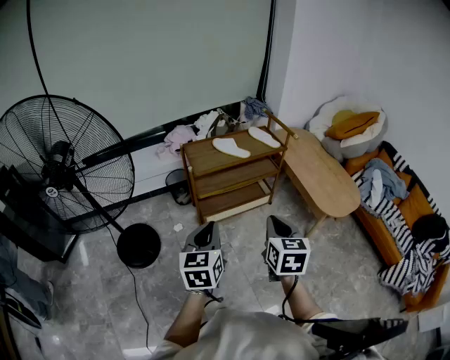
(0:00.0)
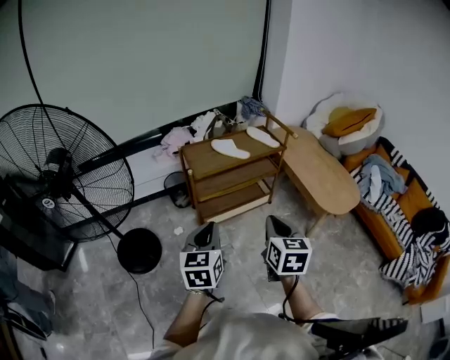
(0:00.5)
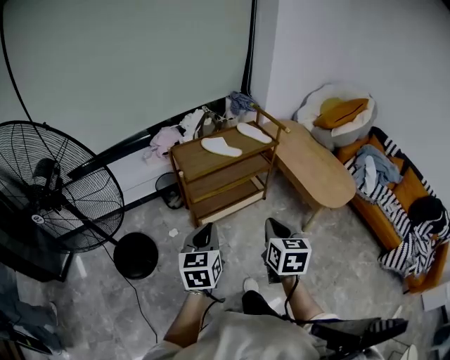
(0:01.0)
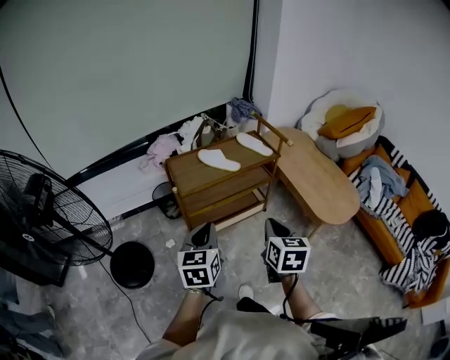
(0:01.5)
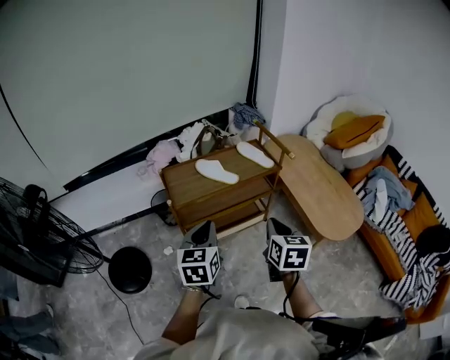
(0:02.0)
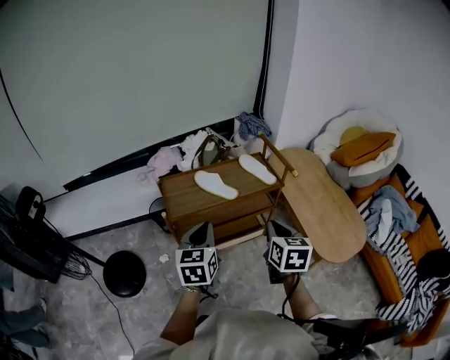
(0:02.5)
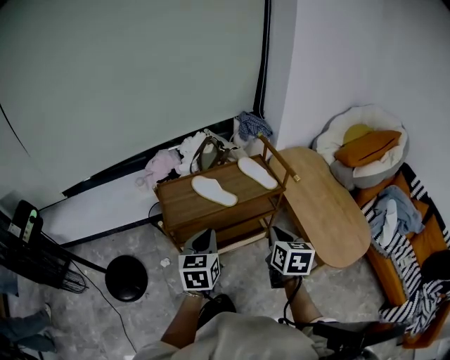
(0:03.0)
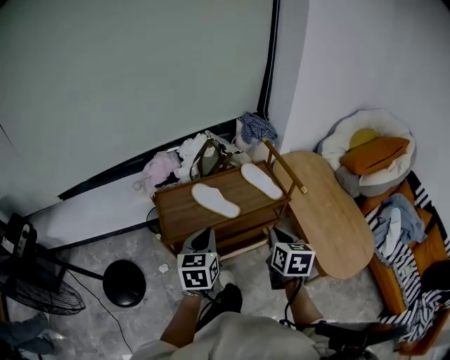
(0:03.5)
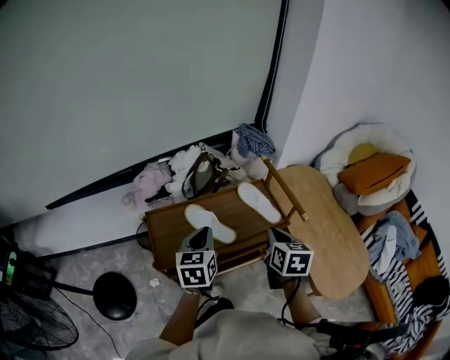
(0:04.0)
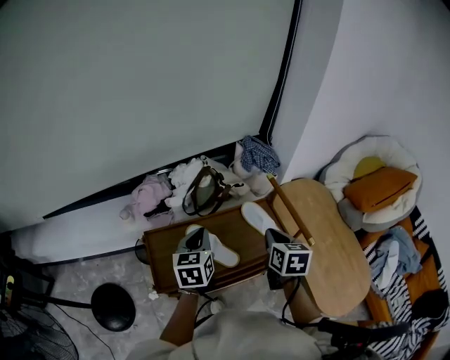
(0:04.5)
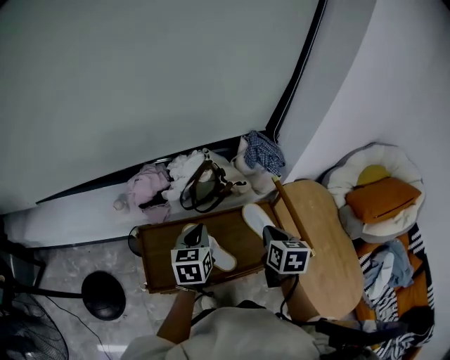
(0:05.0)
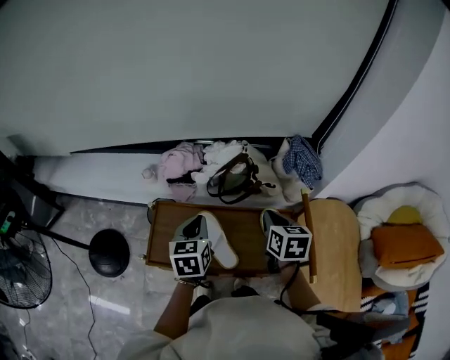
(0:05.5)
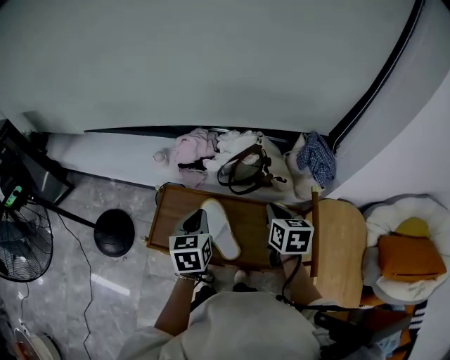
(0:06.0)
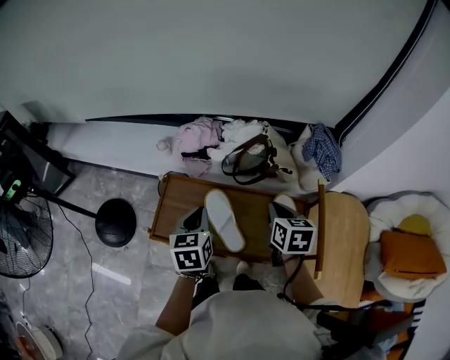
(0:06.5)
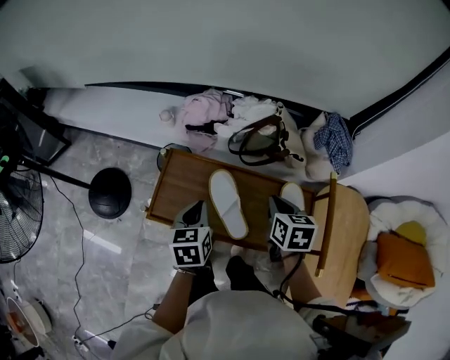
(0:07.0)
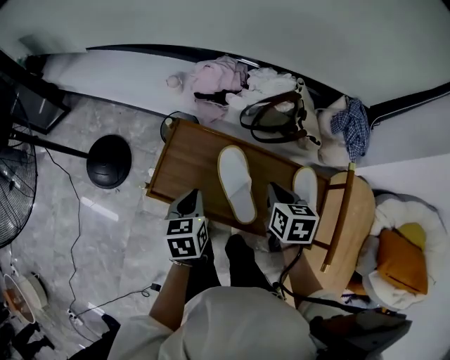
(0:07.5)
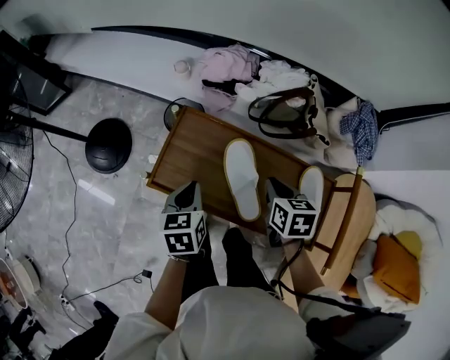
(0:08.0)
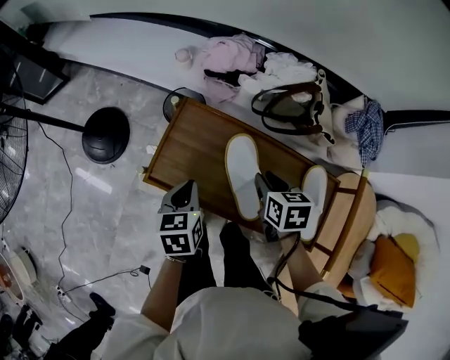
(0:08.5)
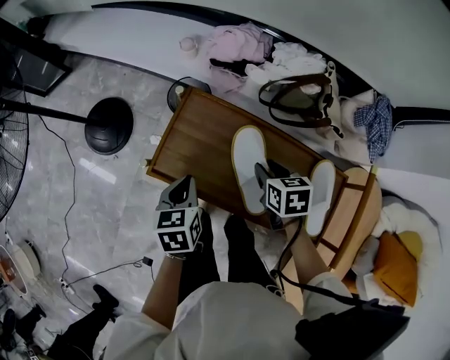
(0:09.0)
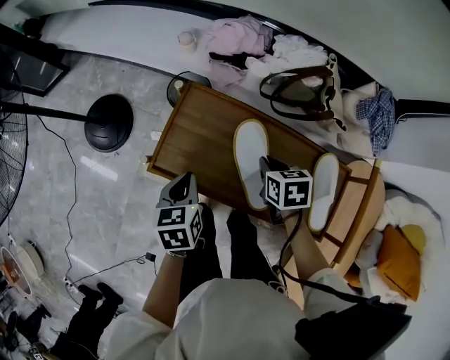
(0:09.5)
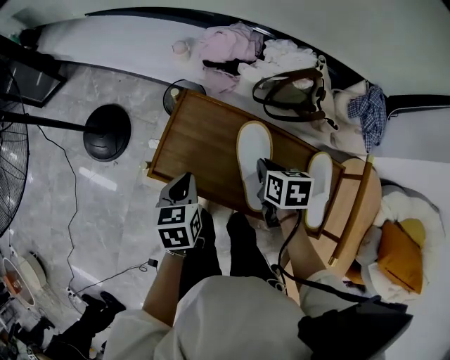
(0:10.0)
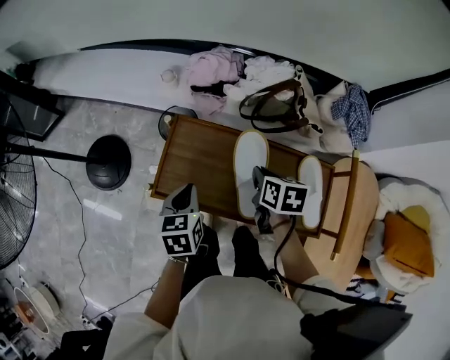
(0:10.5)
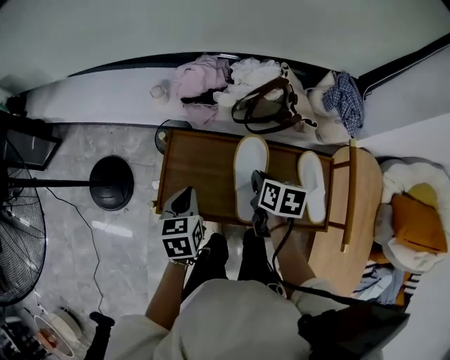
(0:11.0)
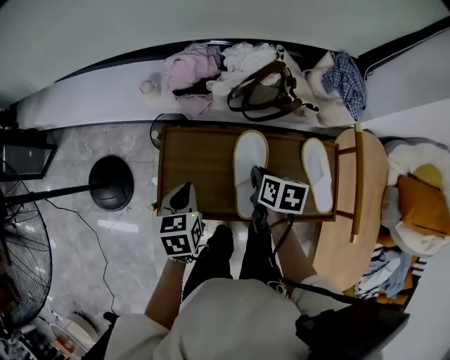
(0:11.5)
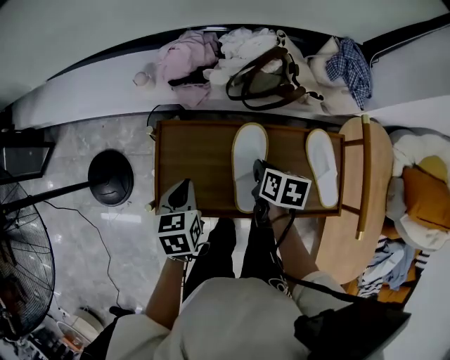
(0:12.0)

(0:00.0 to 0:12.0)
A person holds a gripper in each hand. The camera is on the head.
0:00.0 - 0:02.0: Both grippers move forward, some 20 cm.
0:02.0 - 0:04.0: Both grippers travel together forward, roughly 30 cm.
0:04.0 - 0:06.0: The right gripper shifts by approximately 25 cm, and swivels about 30 degrees. The left gripper shifts by roughly 10 cm, and changes its angle by approximately 30 degrees.
0:06.0 - 0:08.0: The left gripper moves downward, to the left and backward, some 15 cm. Meanwhile the right gripper is displaced downward and to the left by roughly 15 cm, and rotates about 20 degrees.
0:08.0 - 0:10.0: The right gripper changes place by approximately 5 cm, and opens, then closes once more.
0:10.0 - 0:12.0: The right gripper changes its angle by approximately 30 degrees. Meanwhile the left gripper shifts some 5 cm forward.

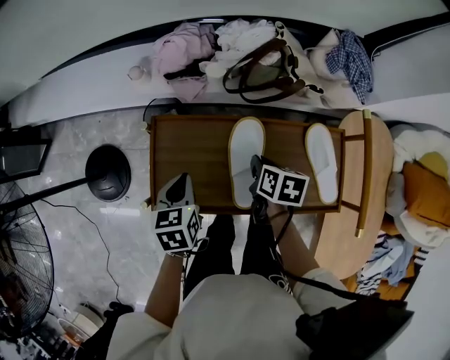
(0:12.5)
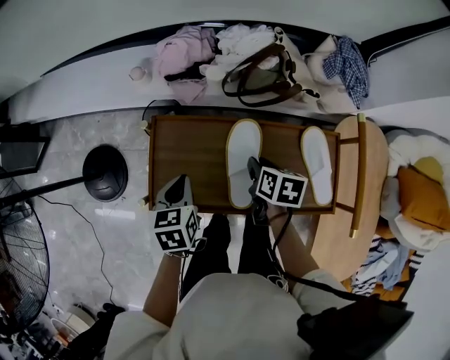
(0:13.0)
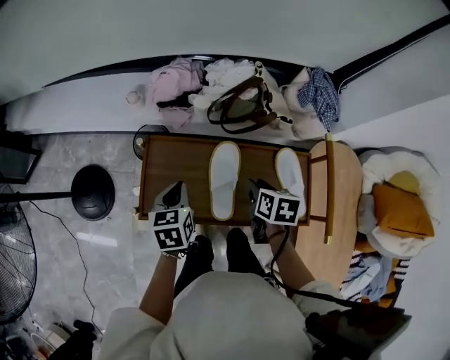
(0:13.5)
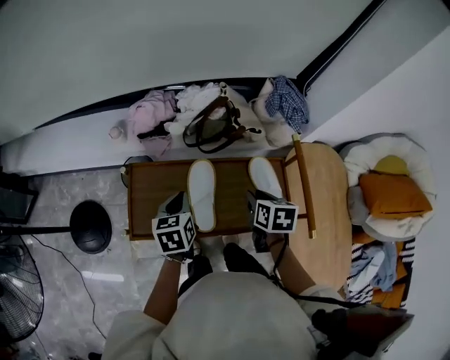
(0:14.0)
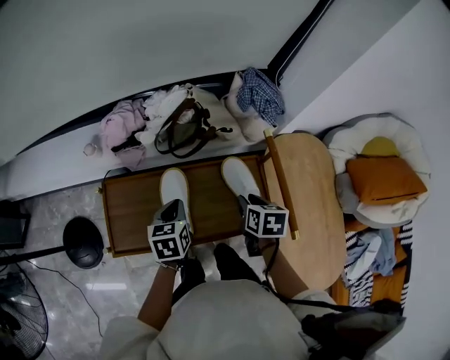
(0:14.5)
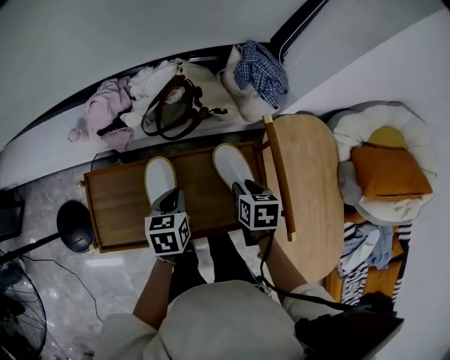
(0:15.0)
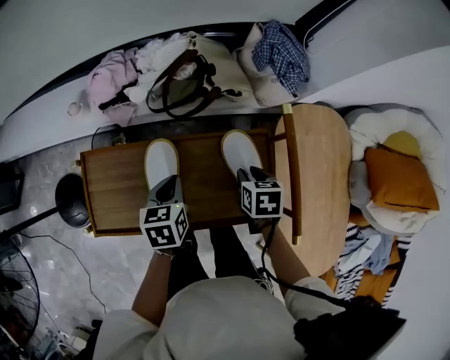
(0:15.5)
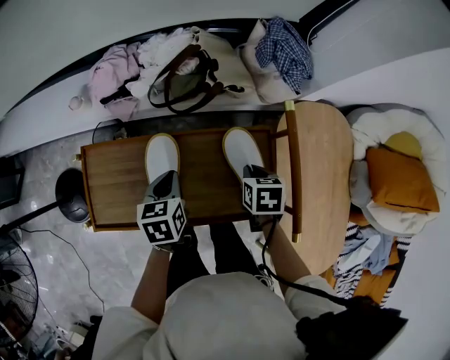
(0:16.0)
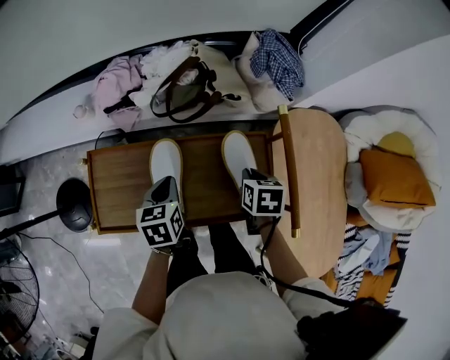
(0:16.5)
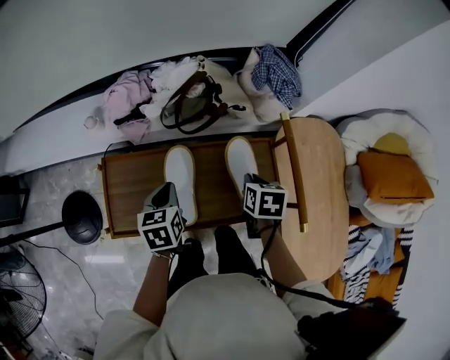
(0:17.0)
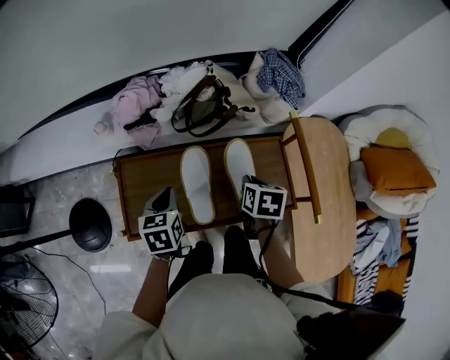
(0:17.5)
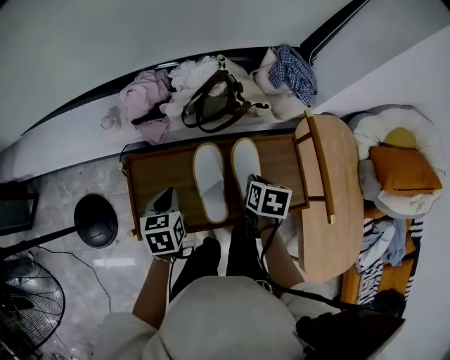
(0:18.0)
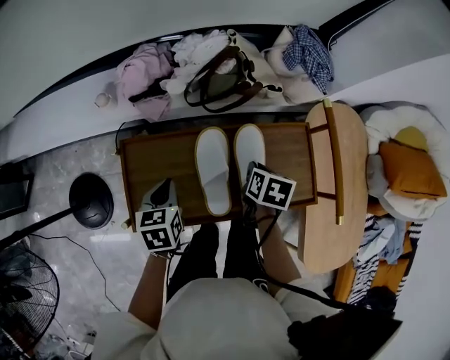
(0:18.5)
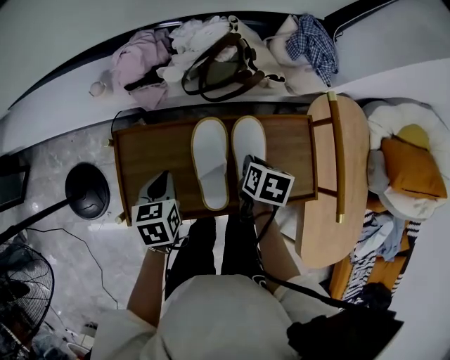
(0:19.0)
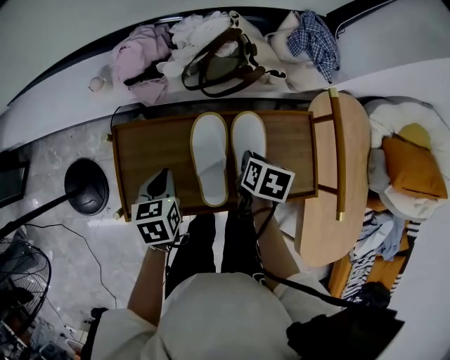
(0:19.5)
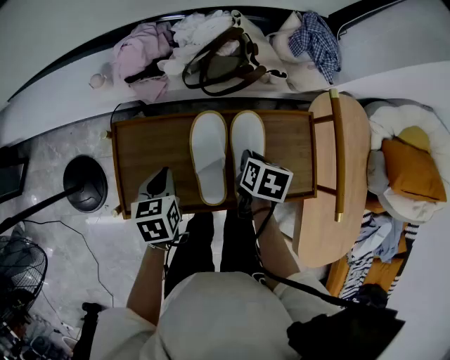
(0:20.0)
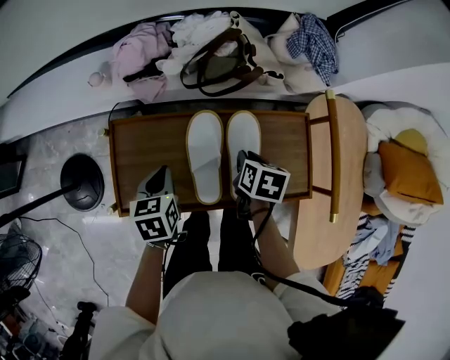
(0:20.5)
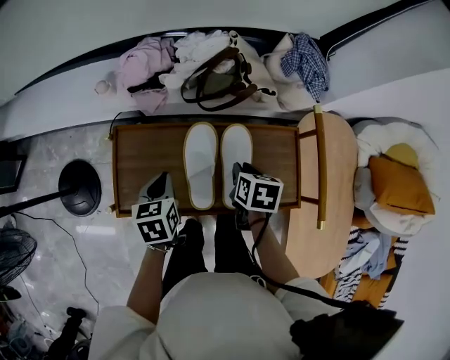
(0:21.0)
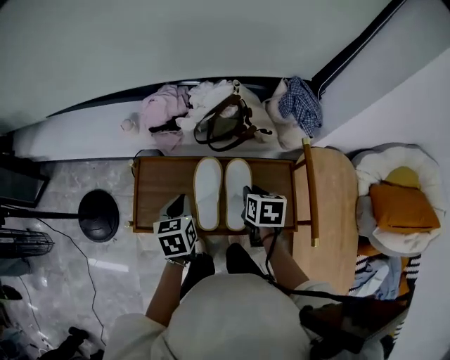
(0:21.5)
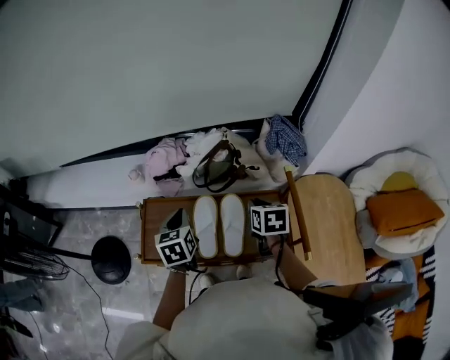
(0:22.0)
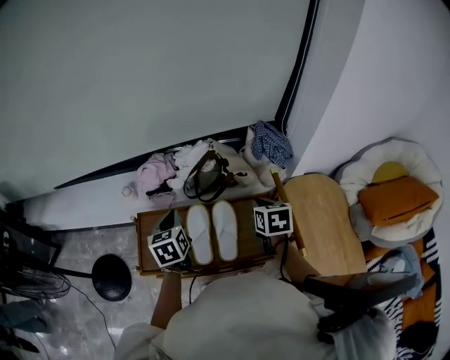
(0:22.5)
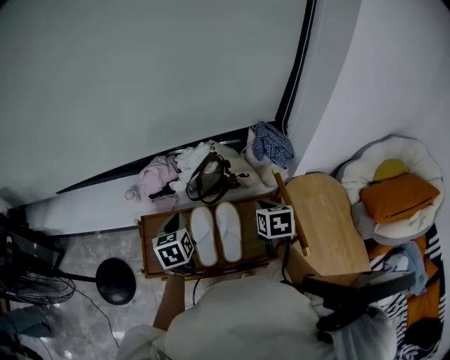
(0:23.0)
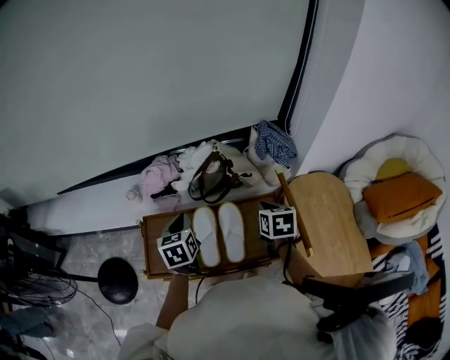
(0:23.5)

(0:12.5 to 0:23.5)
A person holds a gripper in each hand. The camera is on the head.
0:12.5 - 0:14.5: The right gripper goes approximately 20 cm to the right and upward, and opens its fingers. Meanwhile the left gripper is displaced to the right by roughly 15 cm.
0:14.5 - 0:16.0: The right gripper shifts roughly 10 cm downward, and closes its fingers; the left gripper shifts about 5 cm downward.
0:16.0 - 0:18.0: The right gripper is displaced to the left and upward by approximately 10 cm; the left gripper goes about 15 cm to the left.
0:18.0 - 0:20.0: The right gripper heads downward, covering about 5 cm.
0:20.0 - 0:21.5: The grippers both shift upward by some 10 cm.
0:21.5 - 0:23.5: The left gripper goes about 10 cm upward and forward. The right gripper moves upward and to the right, about 10 cm.

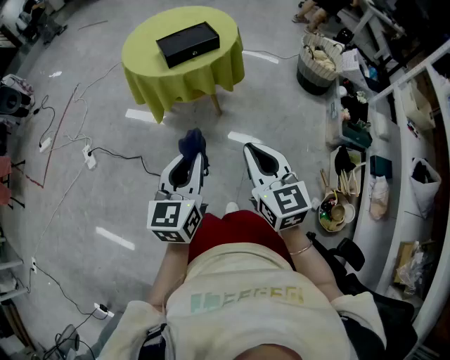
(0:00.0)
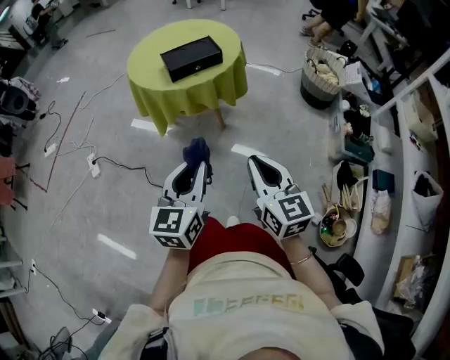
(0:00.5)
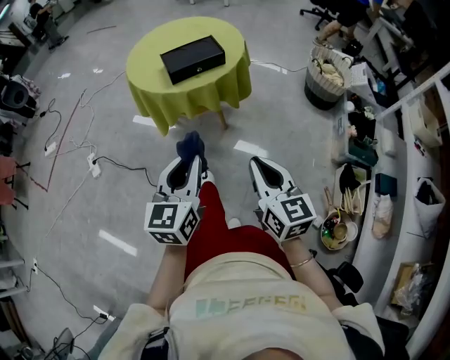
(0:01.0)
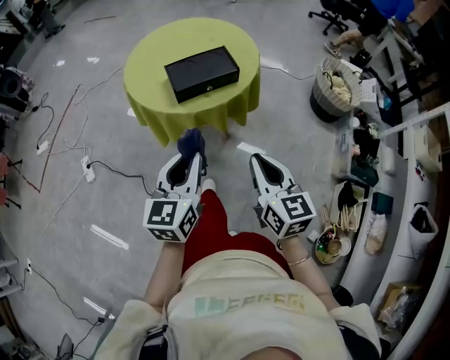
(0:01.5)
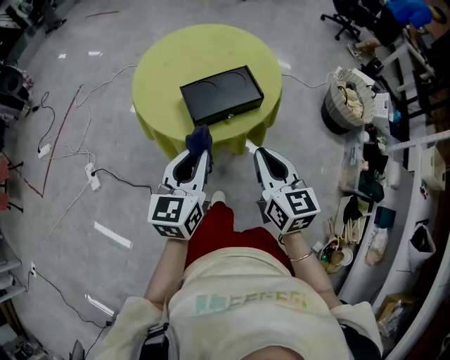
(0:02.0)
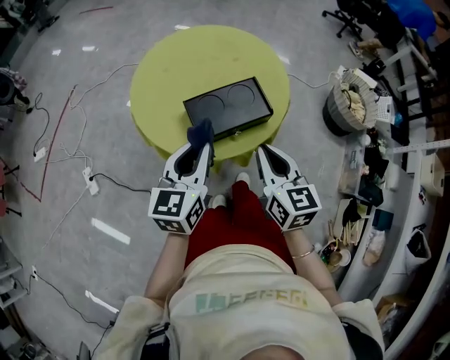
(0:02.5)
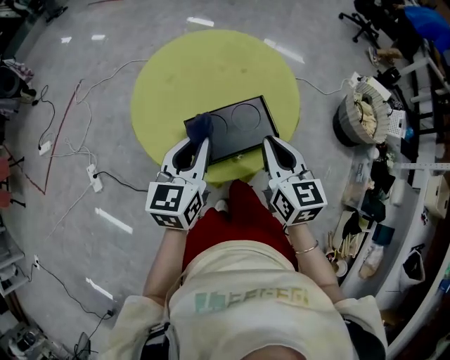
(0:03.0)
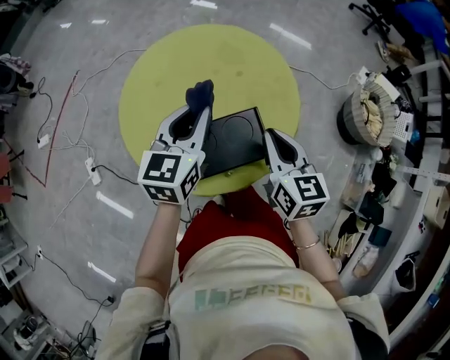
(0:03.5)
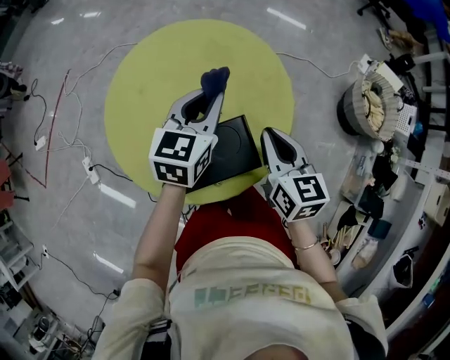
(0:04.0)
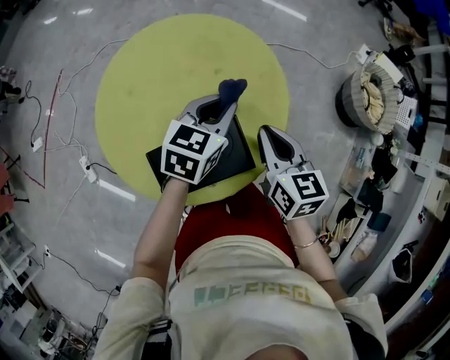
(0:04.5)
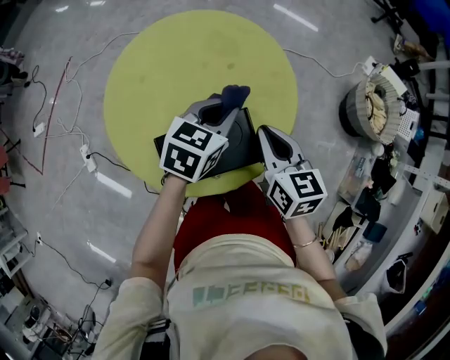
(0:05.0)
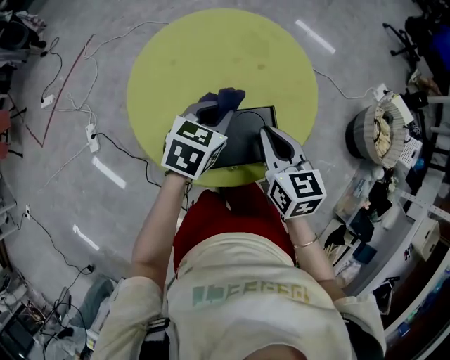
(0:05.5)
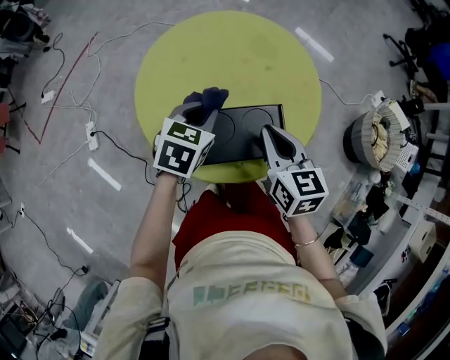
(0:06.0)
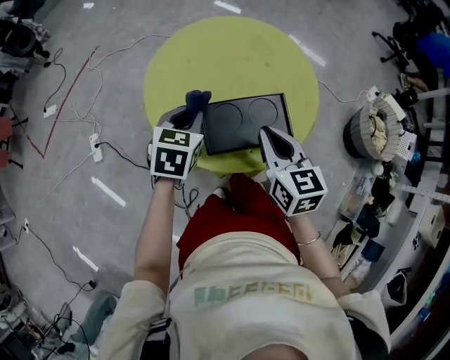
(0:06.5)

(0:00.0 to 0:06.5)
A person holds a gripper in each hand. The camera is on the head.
0:00.0 - 0:02.0: The two grippers travel together, forward, some 40 cm.
0:02.0 - 0:04.5: Both grippers travel together forward, about 40 cm. The left gripper rotates approximately 30 degrees.
0:04.5 - 0:06.5: Both grippers travel together to the left and backward, approximately 25 cm. The left gripper turns by about 30 degrees.
